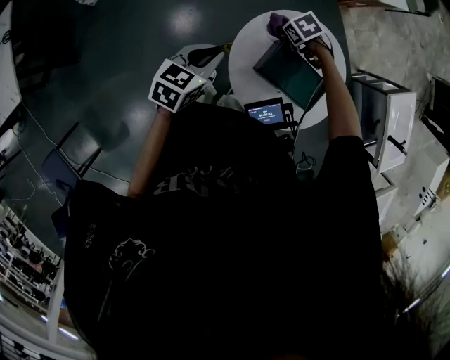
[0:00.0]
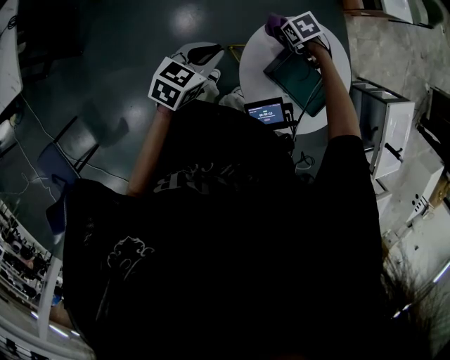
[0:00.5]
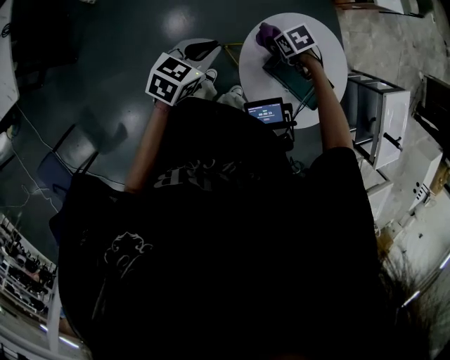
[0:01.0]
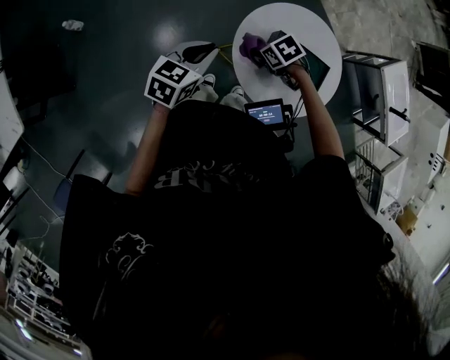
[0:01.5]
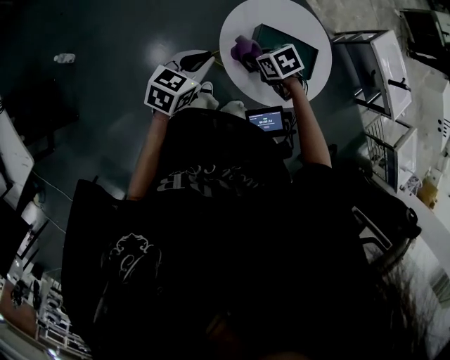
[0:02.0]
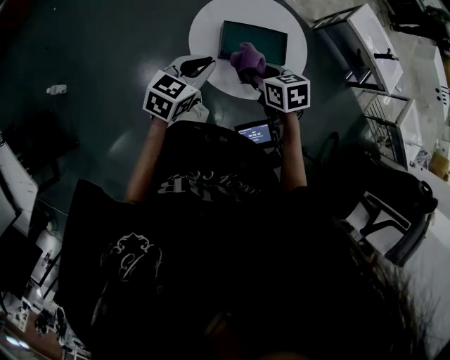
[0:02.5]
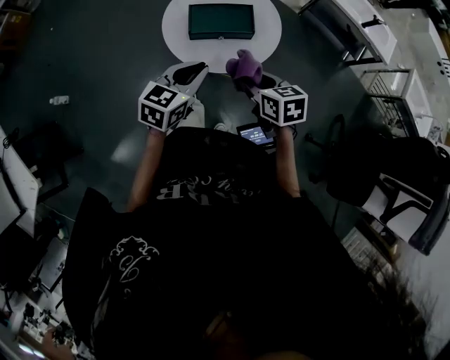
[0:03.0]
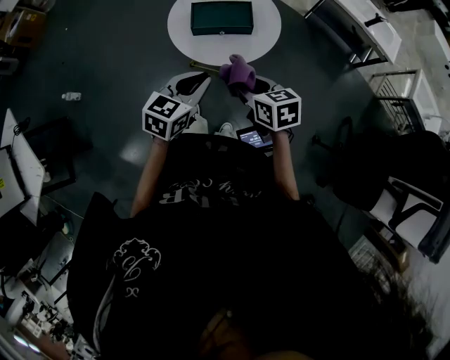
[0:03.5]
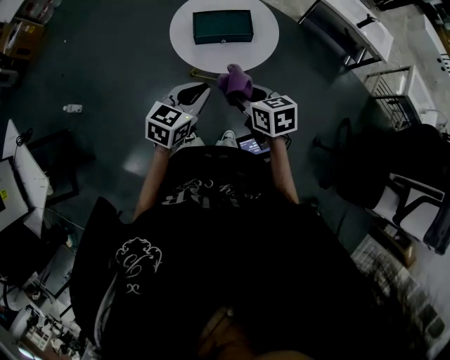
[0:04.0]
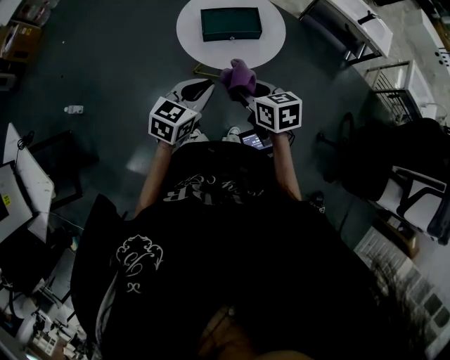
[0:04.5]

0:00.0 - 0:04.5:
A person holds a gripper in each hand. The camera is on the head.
0:00.0 - 0:02.0: The right gripper moves some 20 cm, and turns by approximately 30 degrees.
0:02.0 - 0:04.5: The right gripper ends up approximately 35 cm from where it was, and rotates approximately 50 degrees, while the left gripper ends up approximately 30 cm from where it was.

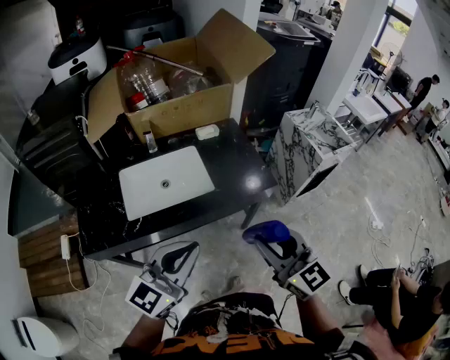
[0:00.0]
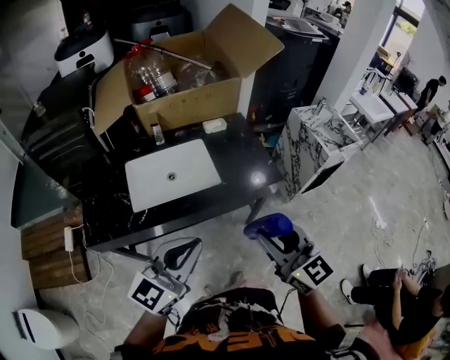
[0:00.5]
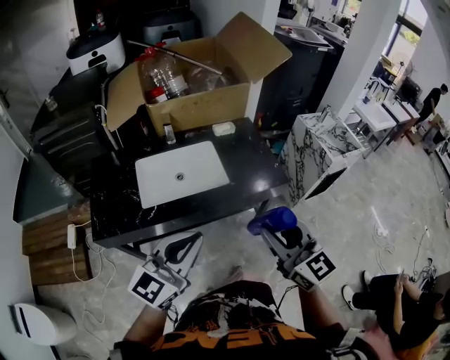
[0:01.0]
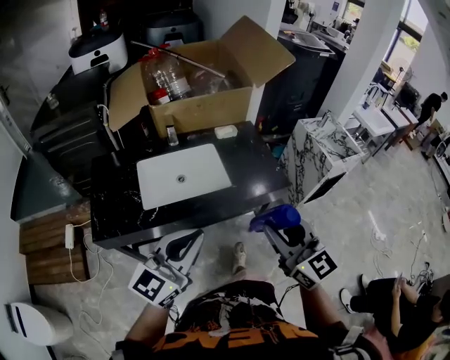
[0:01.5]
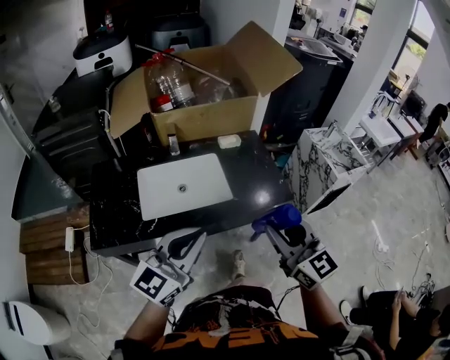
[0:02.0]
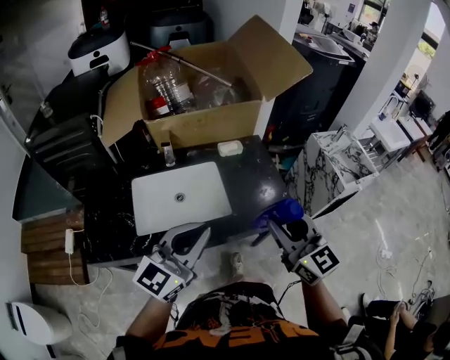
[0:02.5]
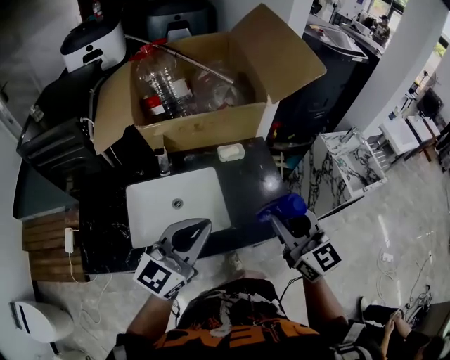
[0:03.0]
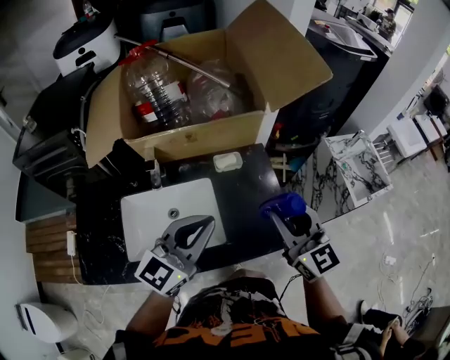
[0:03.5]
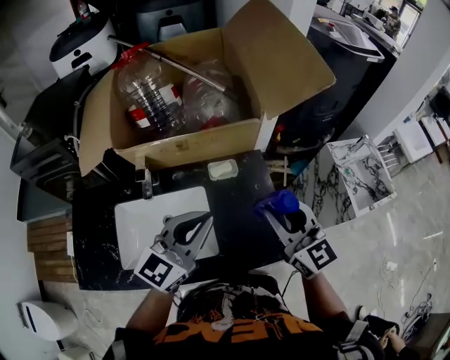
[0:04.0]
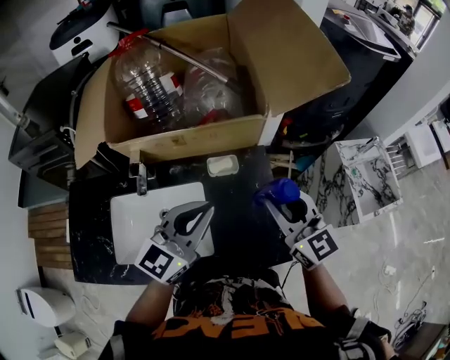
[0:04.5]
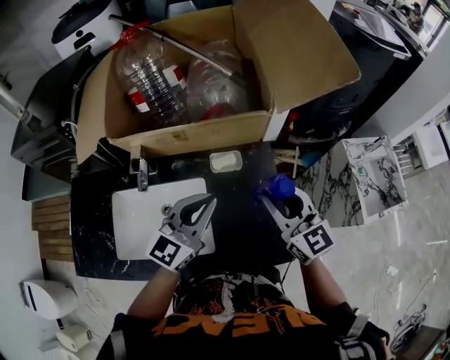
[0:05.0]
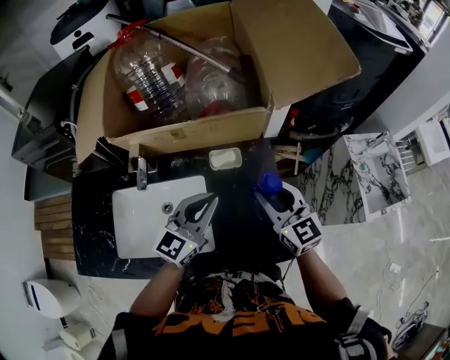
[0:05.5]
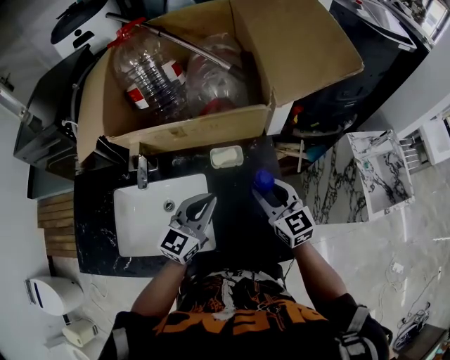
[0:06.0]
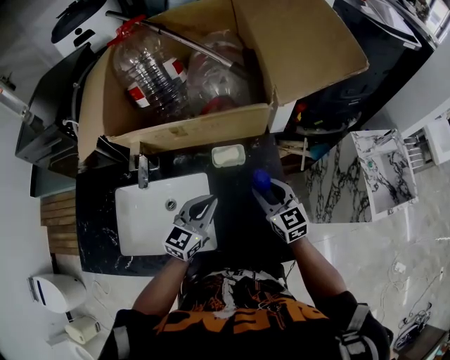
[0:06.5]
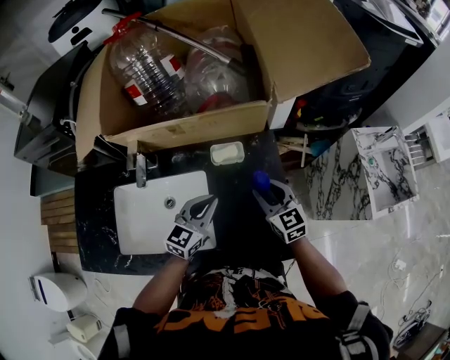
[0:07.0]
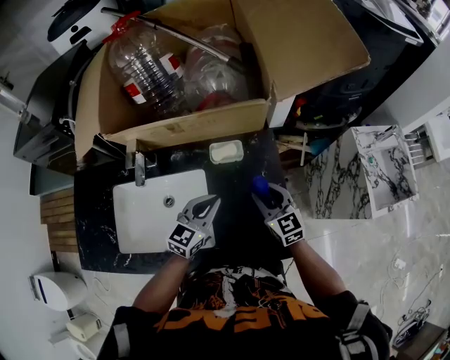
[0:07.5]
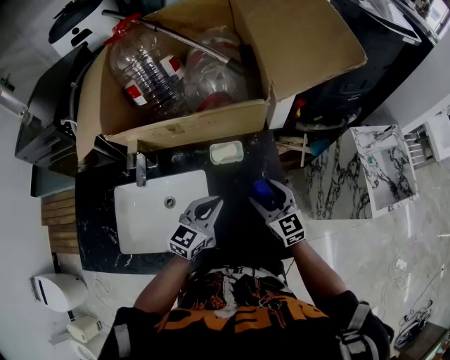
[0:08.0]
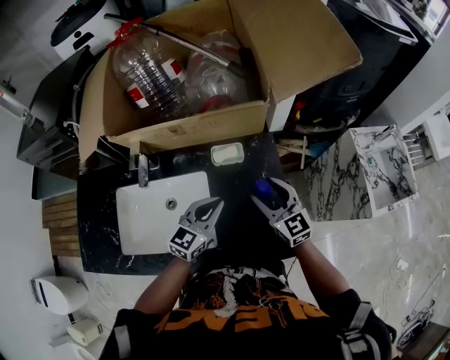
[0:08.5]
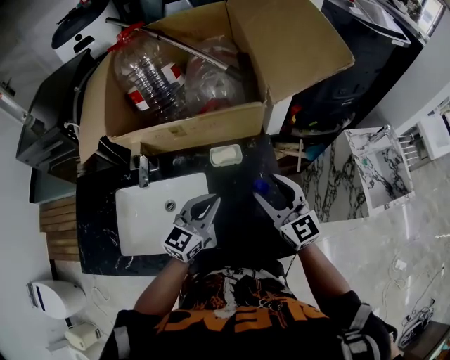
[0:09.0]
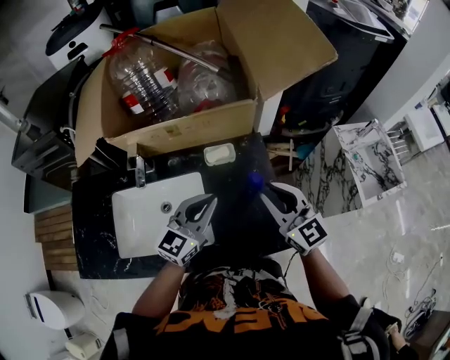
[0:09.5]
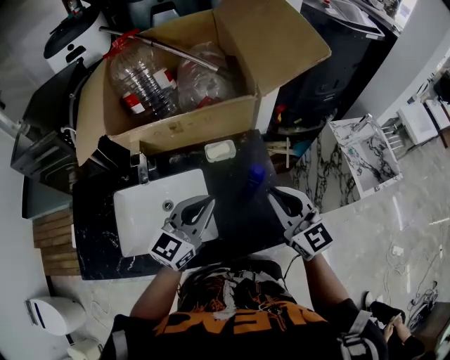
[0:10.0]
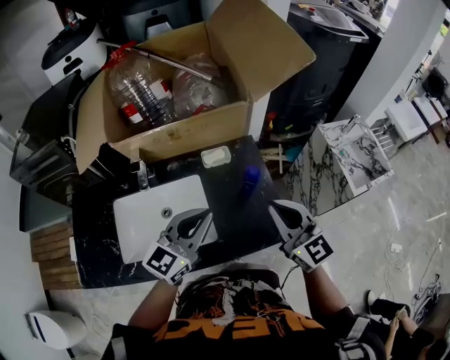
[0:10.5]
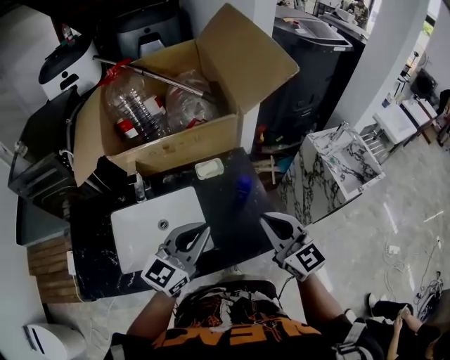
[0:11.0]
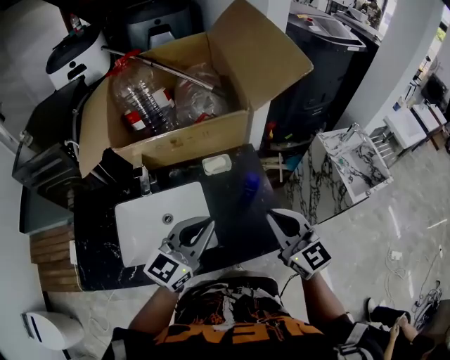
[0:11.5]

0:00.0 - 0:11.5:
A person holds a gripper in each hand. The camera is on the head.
0:00.0 - 0:02.0: The right gripper ends up approximately 5 cm from where it was, while the left gripper changes place by some 5 cm.
0:02.0 - 0:04.0: Both grippers travel together forward, about 35 cm.
0:04.0 - 0:06.0: Both grippers move downward and forward, about 20 cm.
0:06.0 - 0:07.5: Both grippers move downward, approximately 10 cm.
0:07.5 - 0:09.5: The right gripper heads upward, covering about 15 cm, and opens, then closes again. The left gripper moves upward, approximately 10 cm.
0:09.5 - 0:11.5: The right gripper goes roughly 10 cm backward, while the left gripper moves backward and upward, approximately 10 cm.

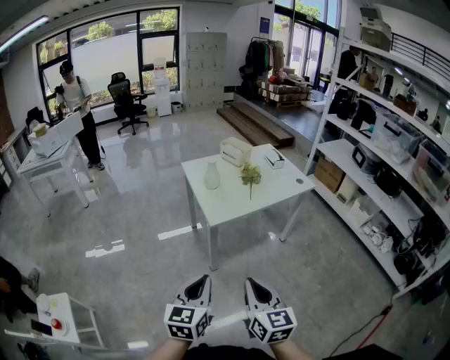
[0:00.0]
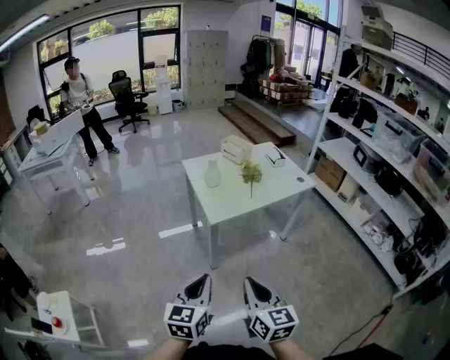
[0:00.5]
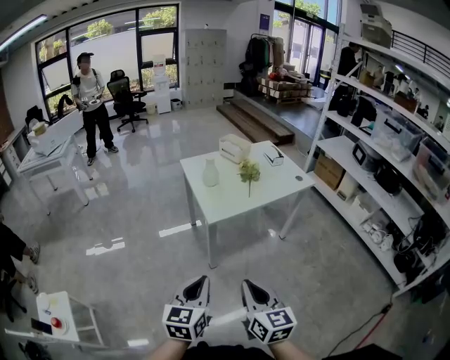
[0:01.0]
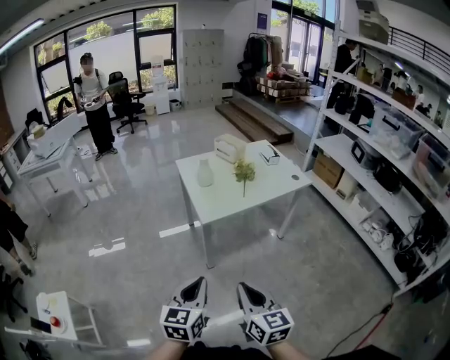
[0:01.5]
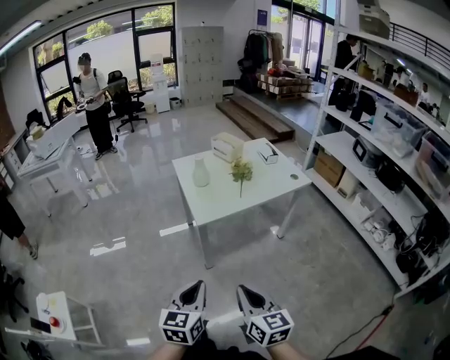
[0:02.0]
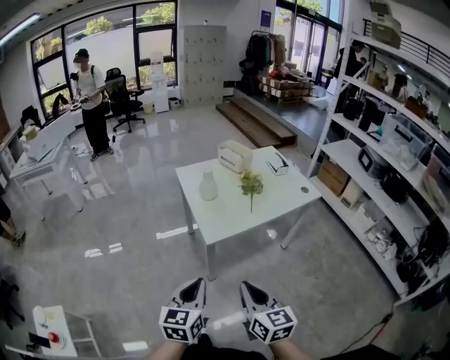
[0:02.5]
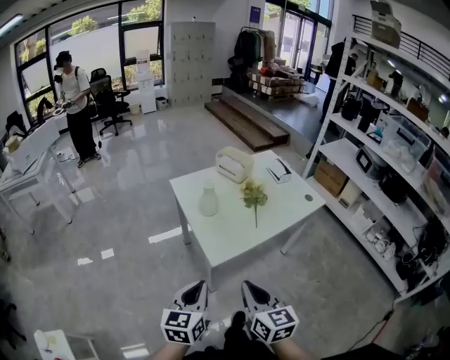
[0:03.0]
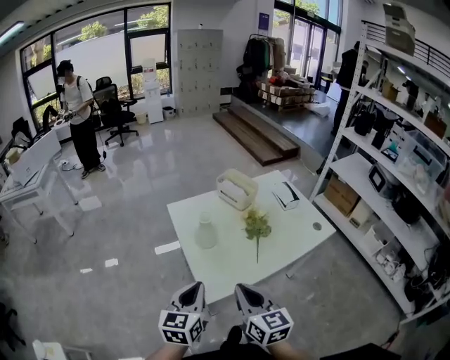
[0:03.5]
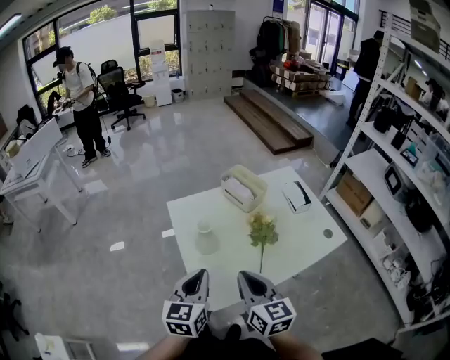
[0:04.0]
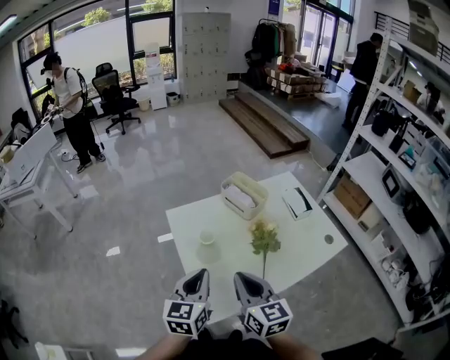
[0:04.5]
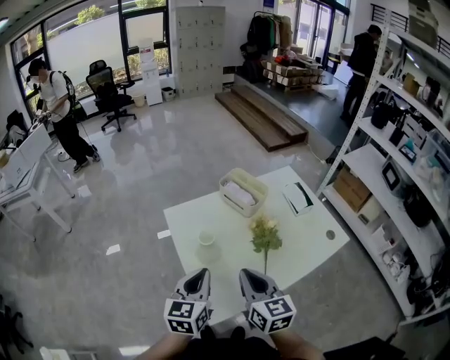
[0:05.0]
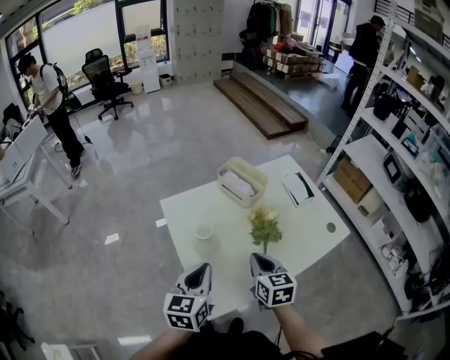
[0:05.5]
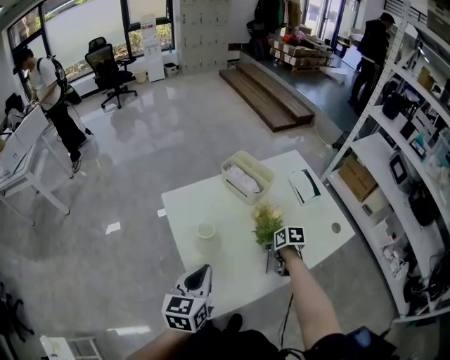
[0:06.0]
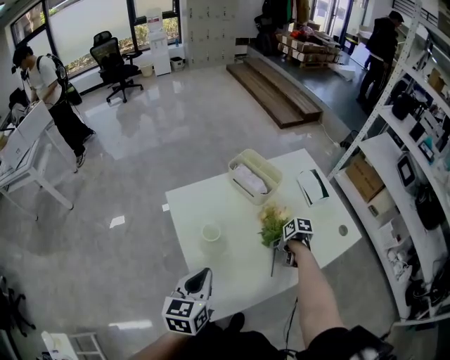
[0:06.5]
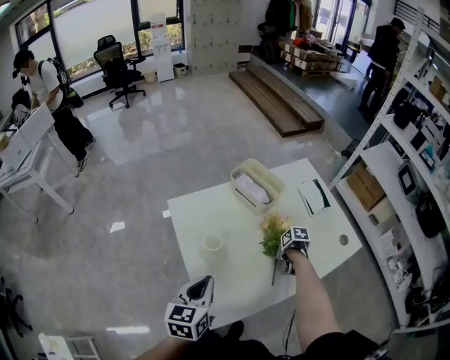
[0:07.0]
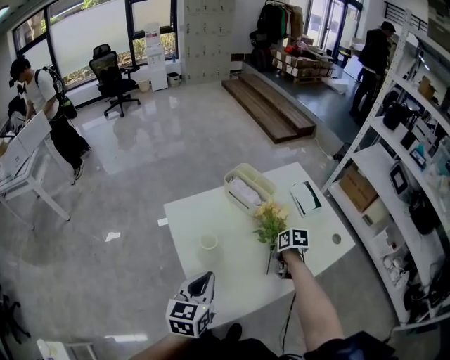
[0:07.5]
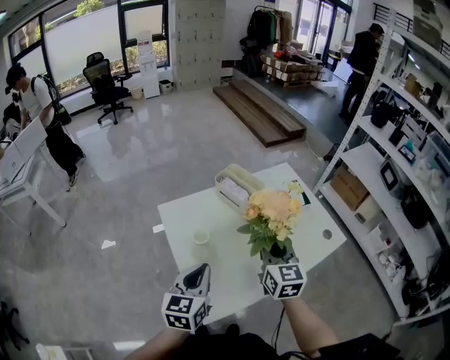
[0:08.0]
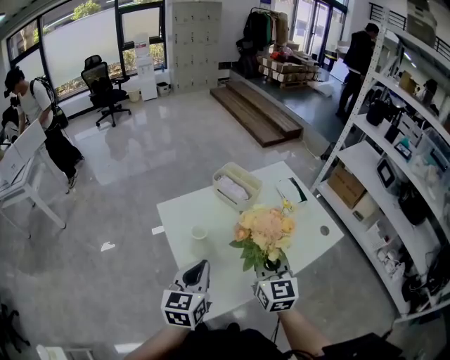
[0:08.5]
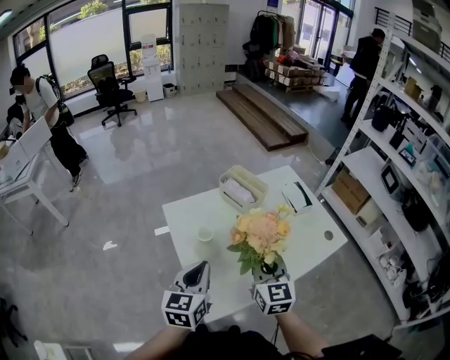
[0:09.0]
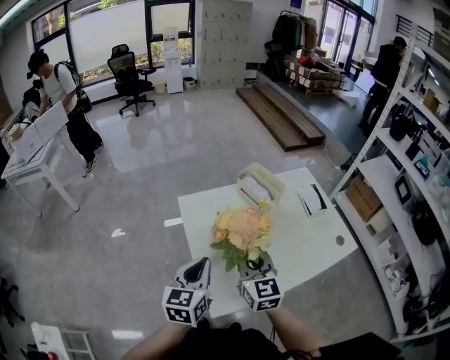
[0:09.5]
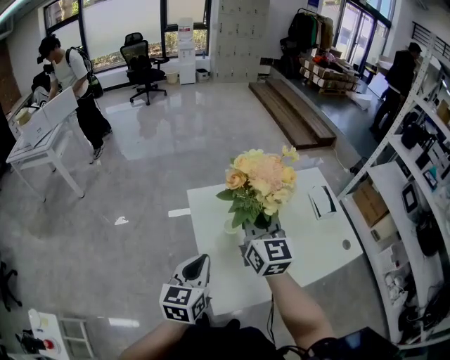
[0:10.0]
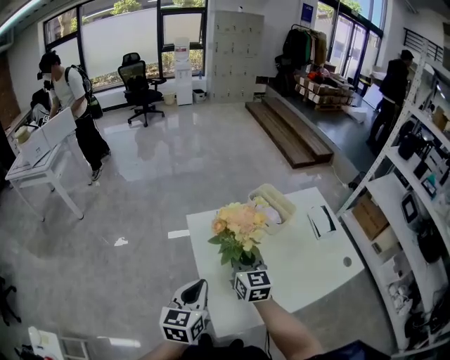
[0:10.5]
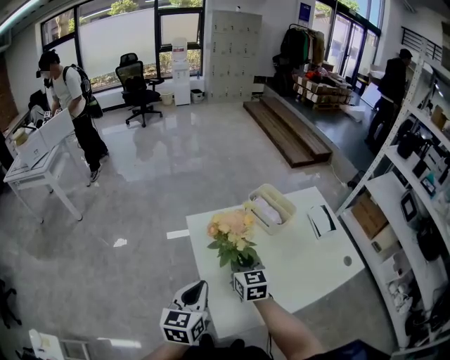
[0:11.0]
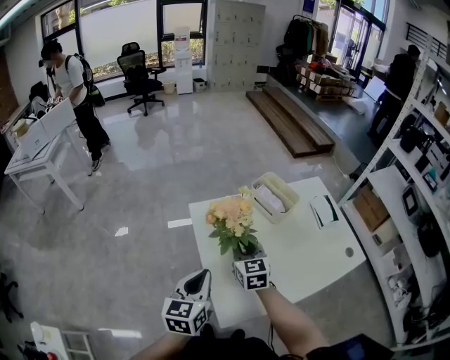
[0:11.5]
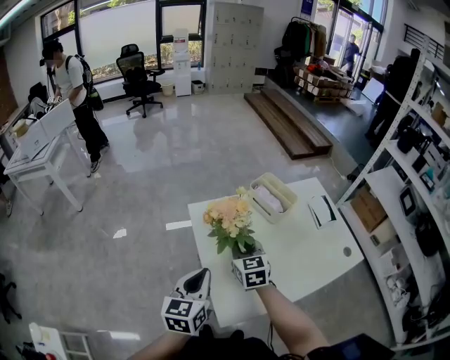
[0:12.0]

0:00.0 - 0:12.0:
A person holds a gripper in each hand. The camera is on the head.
0:00.0 - 0:02.0: The two grippers go roughly 5 cm to the right.
0:02.0 - 0:04.0: Both grippers are carried forward, approximately 50 cm.
0:04.0 - 0:06.0: The left gripper heads forward, covering approximately 5 cm. Meanwhile the right gripper goes approximately 35 cm downward, forward and to the right, points its fingers roughly 50 degrees further downward, and opens up.
0:06.0 - 0:08.0: The right gripper heads upward, covering some 25 cm, tilts its fingers some 50 degrees upward, and closes.
0:08.0 - 0:10.0: The left gripper goes roughly 5 cm to the left. The right gripper moves to the left and upward, about 20 cm, and swivels about 20 degrees.
0:10.0 - 0:12.0: The right gripper is displaced downward by about 15 cm, and turns by some 30 degrees.
